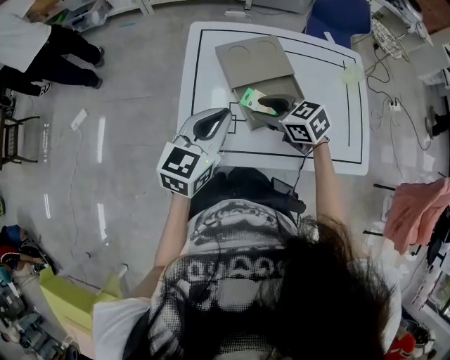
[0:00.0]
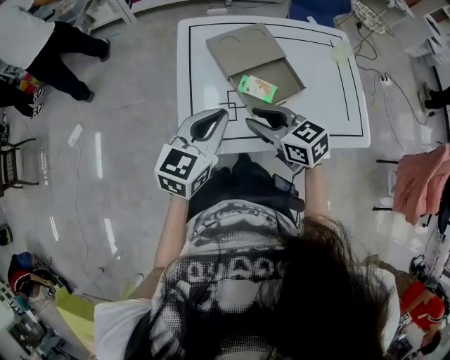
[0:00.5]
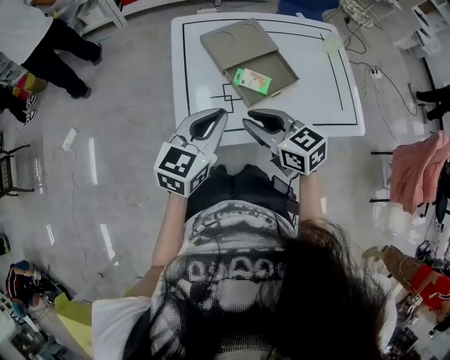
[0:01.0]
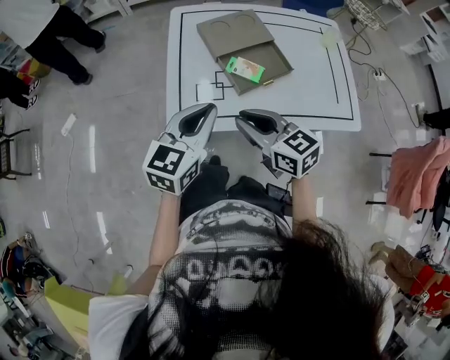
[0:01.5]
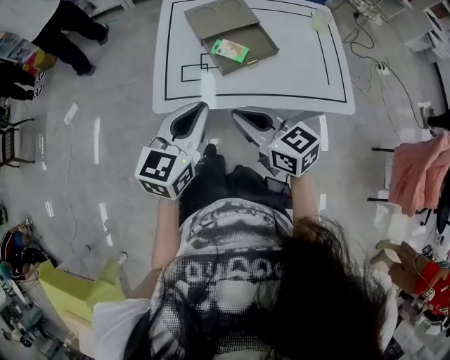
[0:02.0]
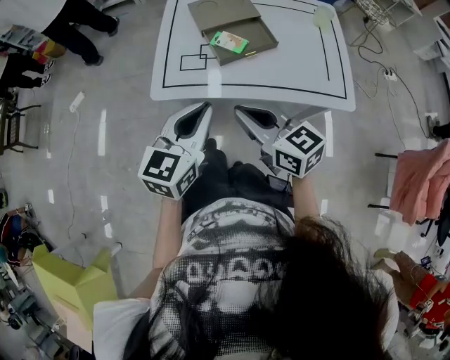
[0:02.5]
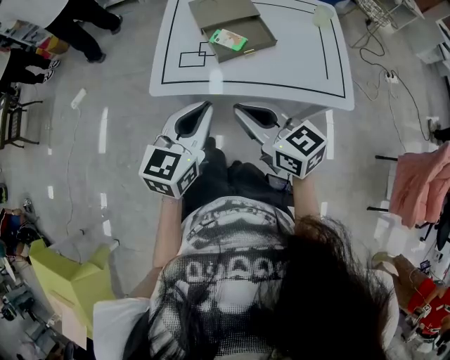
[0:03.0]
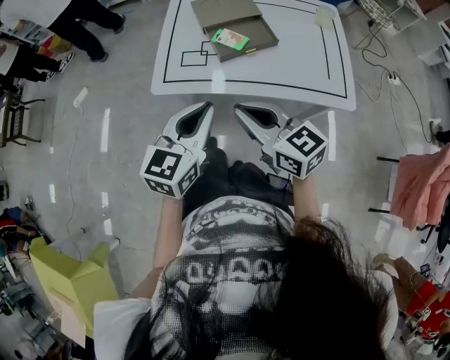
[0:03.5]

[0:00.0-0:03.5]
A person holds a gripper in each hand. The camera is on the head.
0:00.0 to 0:02.0: The two grippers go about 25 cm backward. The right gripper turns by about 30 degrees, and closes its fingers.
0:02.0 to 0:03.5: Both grippers travel together backward, some 5 cm.

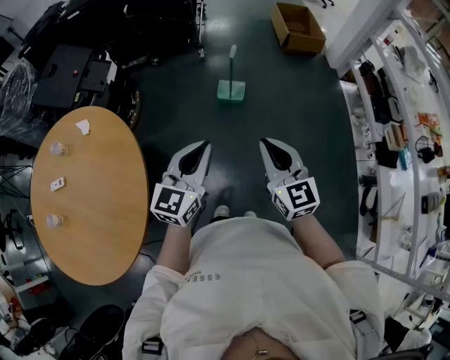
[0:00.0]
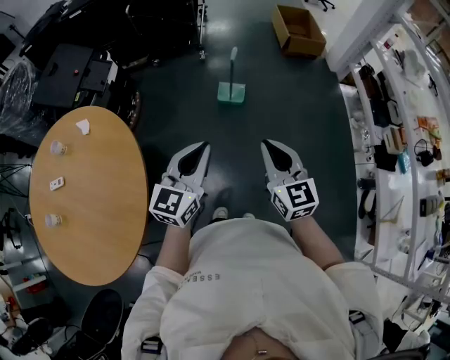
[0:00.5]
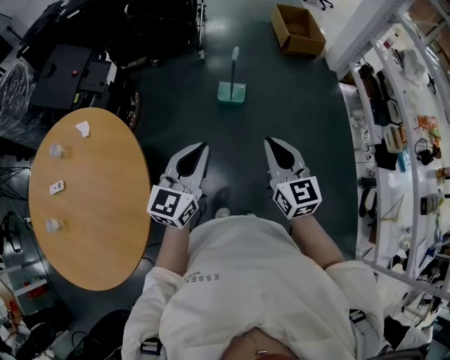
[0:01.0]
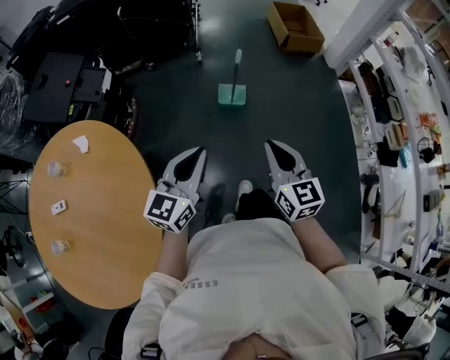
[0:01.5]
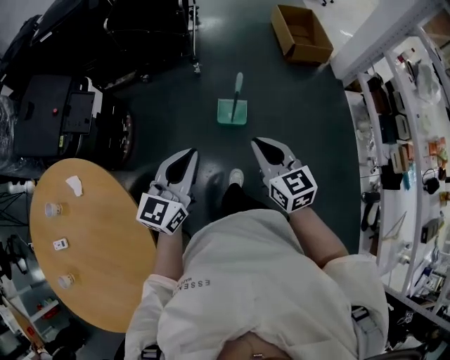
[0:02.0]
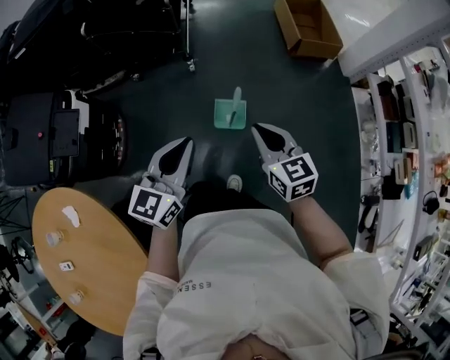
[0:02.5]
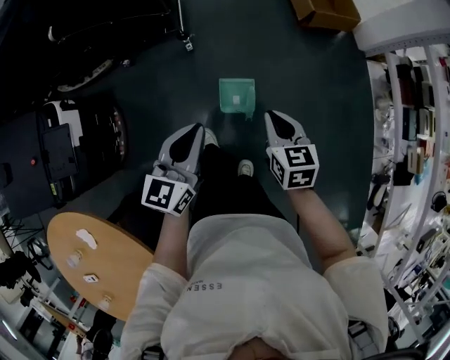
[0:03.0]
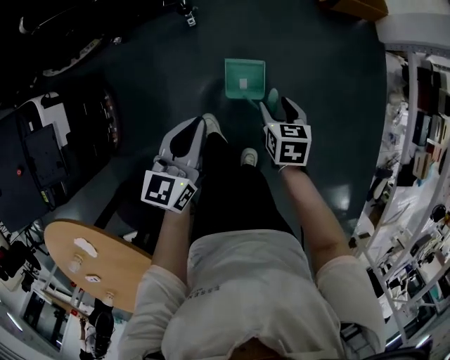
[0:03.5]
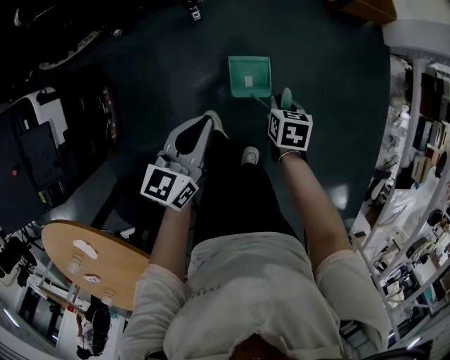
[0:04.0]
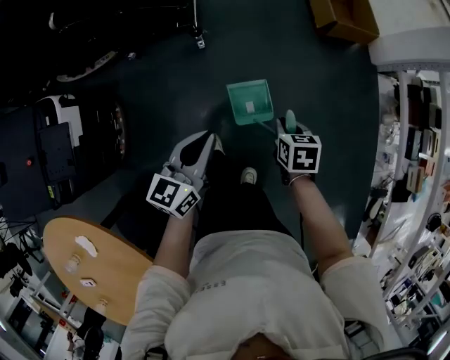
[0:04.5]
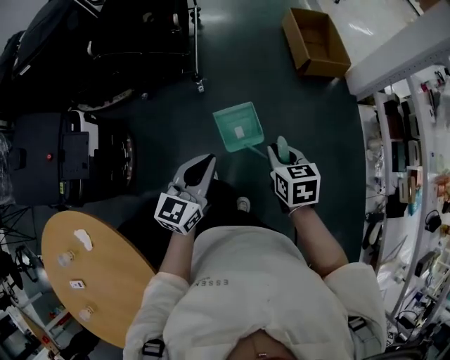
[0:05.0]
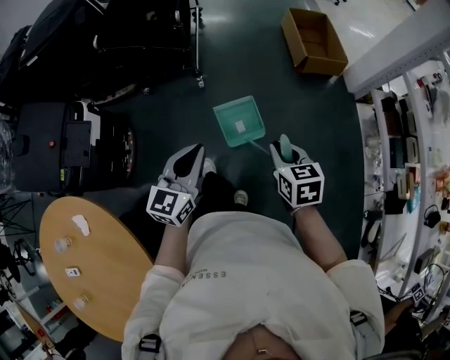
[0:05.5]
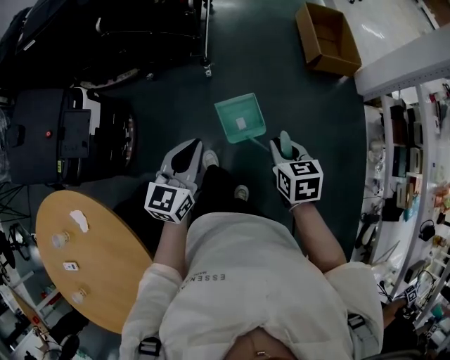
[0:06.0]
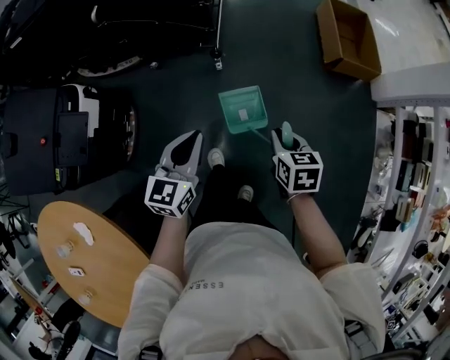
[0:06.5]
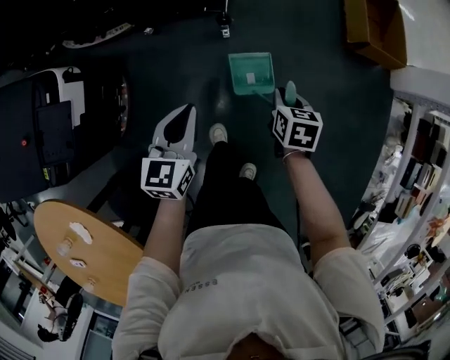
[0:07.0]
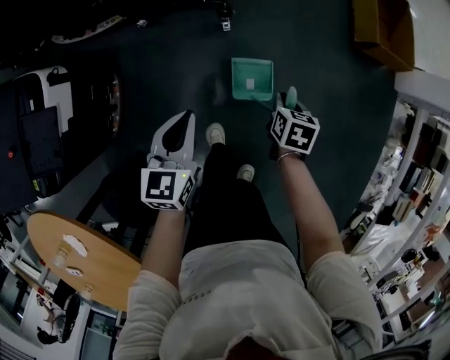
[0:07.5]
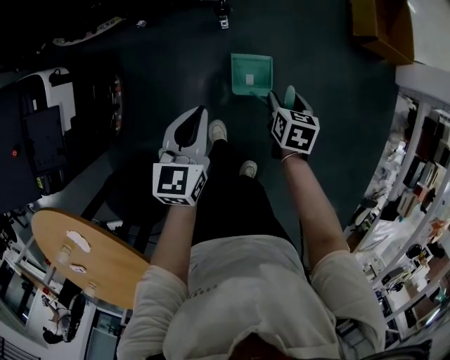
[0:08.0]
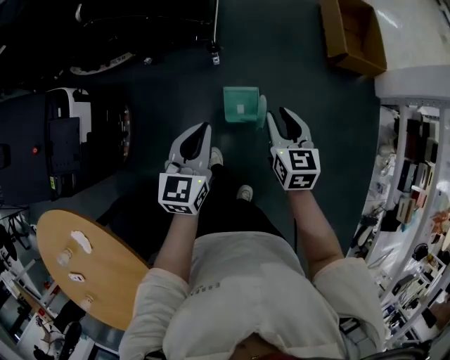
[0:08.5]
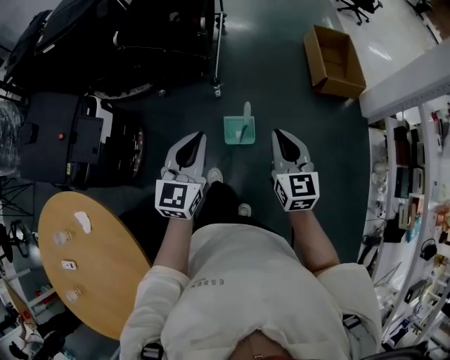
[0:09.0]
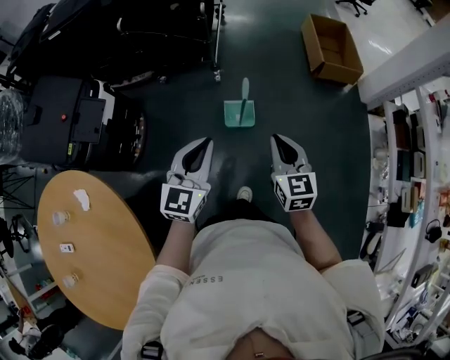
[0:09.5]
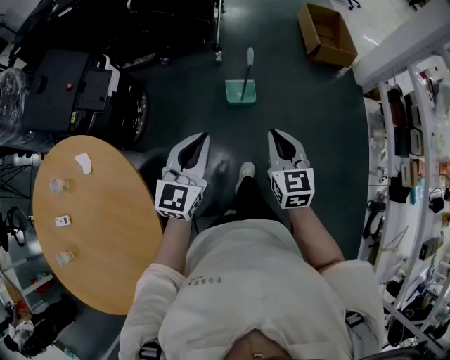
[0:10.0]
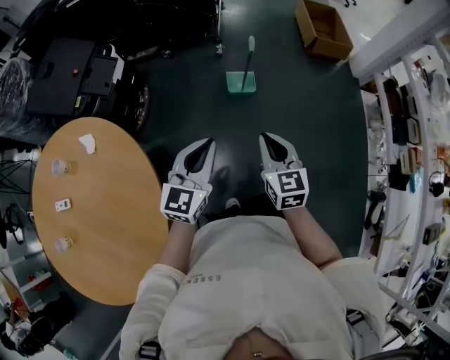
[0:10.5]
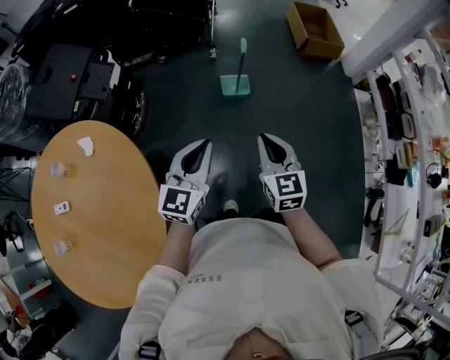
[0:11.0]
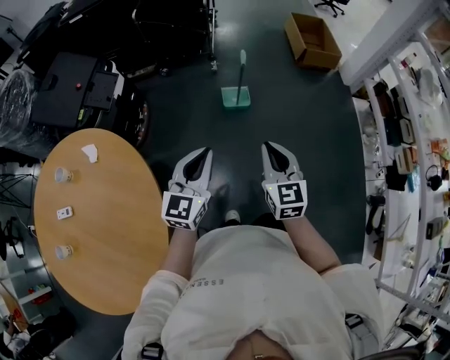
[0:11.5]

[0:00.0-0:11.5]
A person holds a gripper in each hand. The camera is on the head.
0:00.0 to 0:02.0: Both grippers travel together forward, roughly 25 cm.
0:02.0 to 0:04.0: Both grippers move forward and downward, approximately 50 cm. The right gripper angles its fingers downward, by approximately 50 degrees, and opens, then closes once more; the left gripper turns by roughly 30 degrees.
0:04.0 to 0:06.0: Both grippers travel together upward and backward, some 25 cm. The right gripper swivels roughly 30 degrees.
0:06.0 to 0:07.5: The right gripper goes approximately 40 cm downward and forward. Meanwhile the left gripper heads downward, forward and to the left, covering some 30 cm, and changes its angle by about 20 degrees.
0:07.5 to 0:09.5: The right gripper heads upward and backward, covering roughly 50 cm, points its fingers roughly 40 degrees further upward, and opens, then closes once more, while the left gripper moves backward, upward and to the right, approximately 40 cm, and changes its angle by some 30 degrees.
0:09.5 to 0:11.5: The grippers both shift backward by roughly 30 cm.

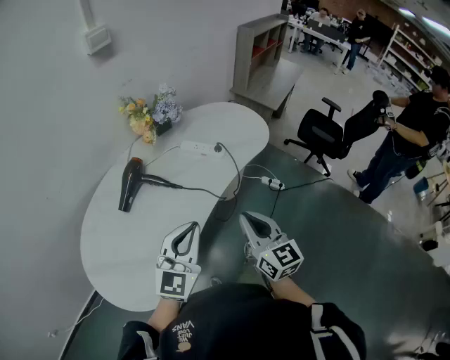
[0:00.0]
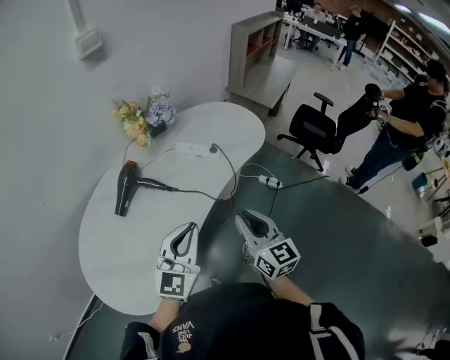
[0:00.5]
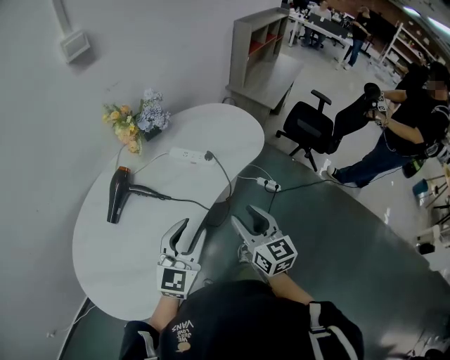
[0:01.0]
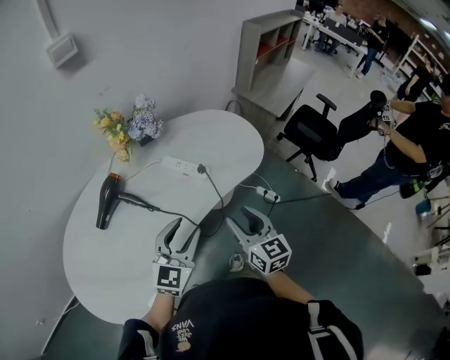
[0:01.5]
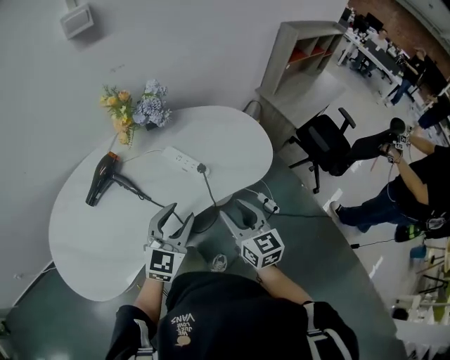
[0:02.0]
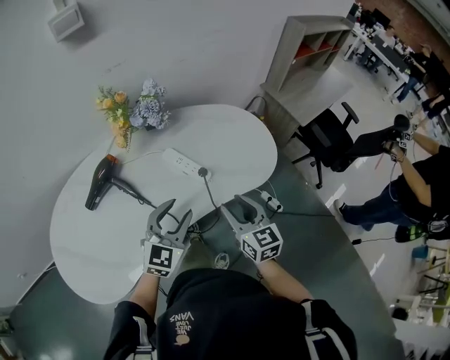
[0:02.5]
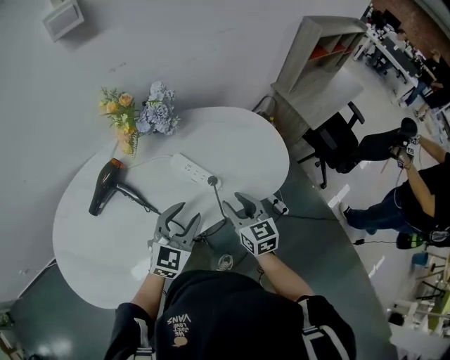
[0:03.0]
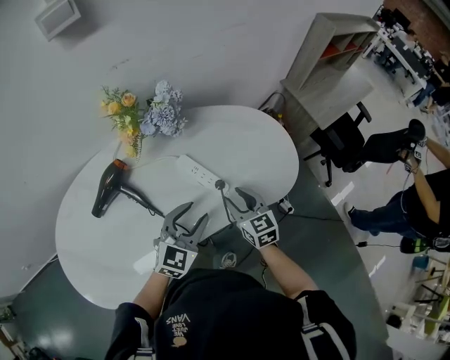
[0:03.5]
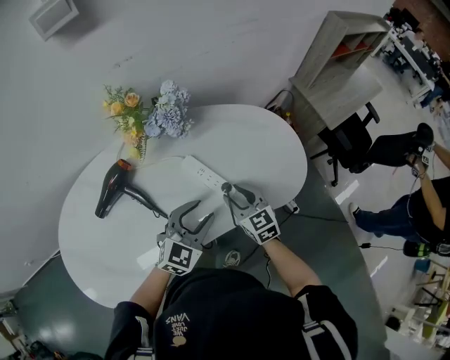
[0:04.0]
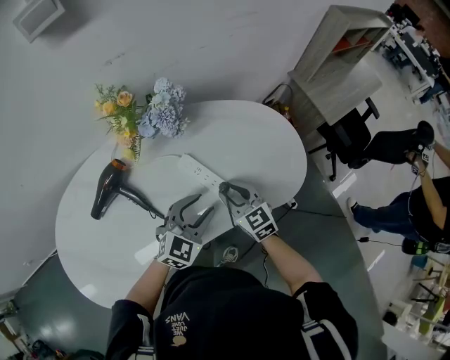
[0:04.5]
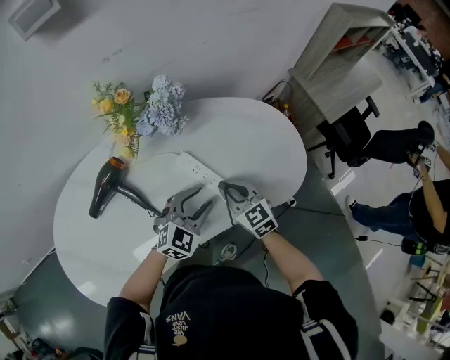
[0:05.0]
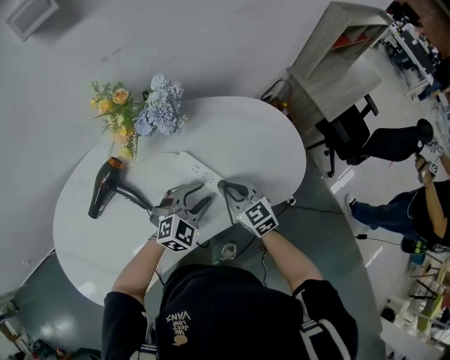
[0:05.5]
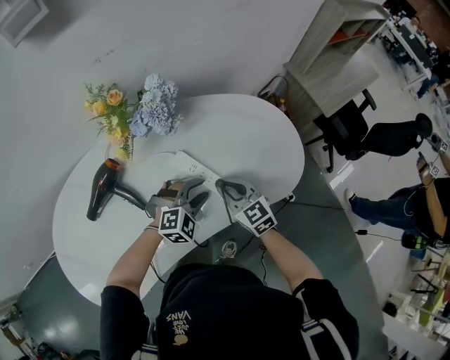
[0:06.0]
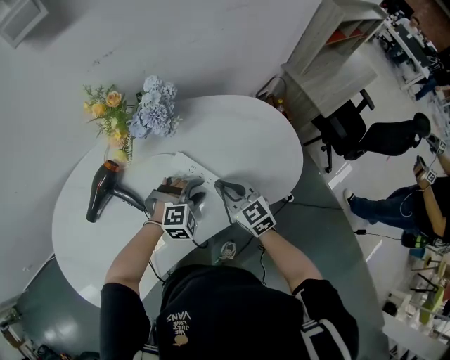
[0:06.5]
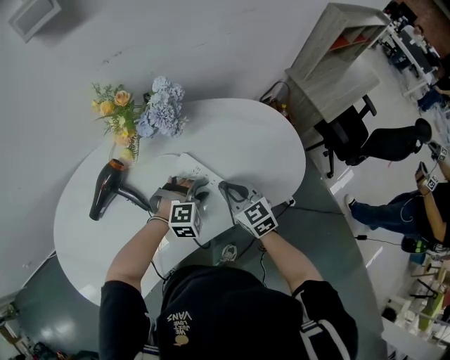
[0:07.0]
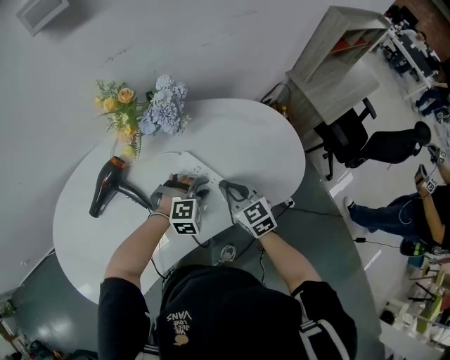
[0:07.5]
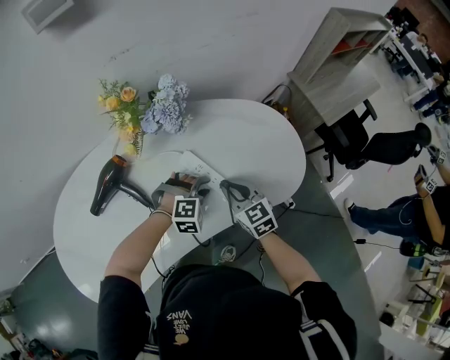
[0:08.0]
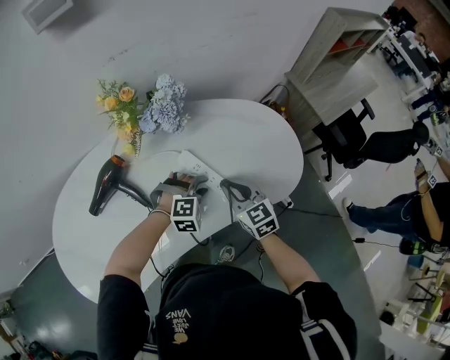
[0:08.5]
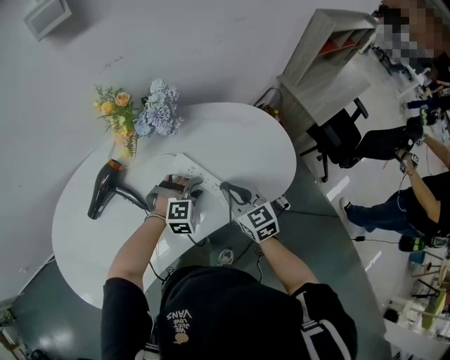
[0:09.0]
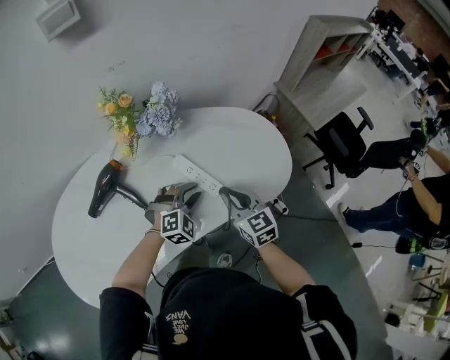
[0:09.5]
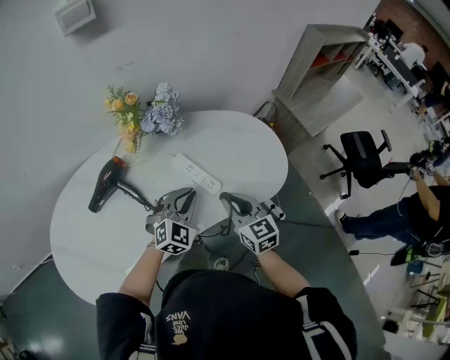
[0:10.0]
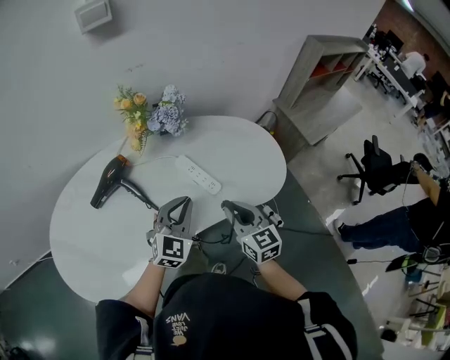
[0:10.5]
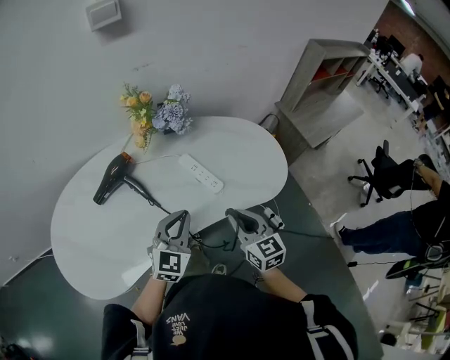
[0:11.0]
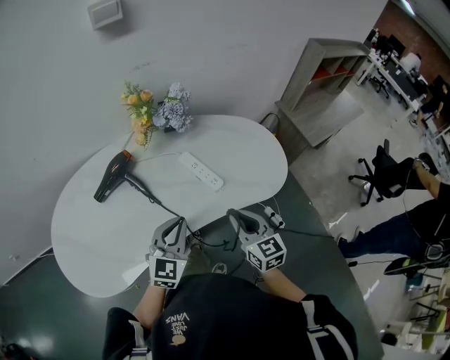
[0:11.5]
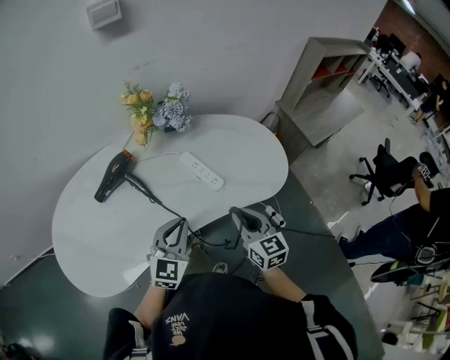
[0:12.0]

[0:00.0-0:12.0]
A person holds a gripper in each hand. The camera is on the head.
0:00.0 to 0:02.0: The left gripper shifts some 25 cm forward, to the right and downward, and opens, while the right gripper heads forward and to the right, covering about 25 cm, turns by approximately 20 degrees, and opens up.
0:02.0 to 0:04.0: Both grippers move forward and downward, some 20 cm. The right gripper changes its angle by roughly 20 degrees.
0:04.0 to 0:06.0: The left gripper moves downward and forward, some 10 cm, and turns by some 40 degrees, while the right gripper closes.
0:06.0 to 0:08.0: The grippers move only a little.
0:08.0 to 0:10.0: The right gripper is displaced backward and upward by approximately 10 cm. Meanwhile the left gripper goes some 15 cm upward and backward, rotates roughly 40 degrees, and closes up.
0:10.0 to 0:12.0: The left gripper heads backward, to the left and upward, covering approximately 15 cm, and swivels about 30 degrees. Meanwhile the right gripper heads backward, covering some 10 cm.
